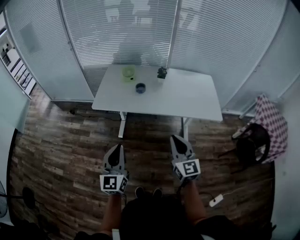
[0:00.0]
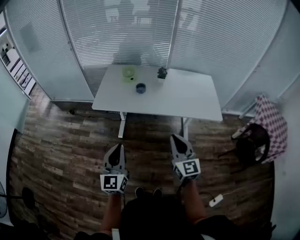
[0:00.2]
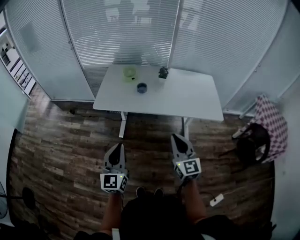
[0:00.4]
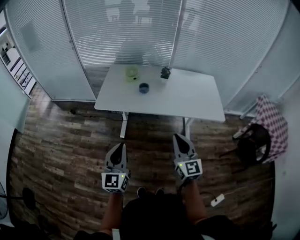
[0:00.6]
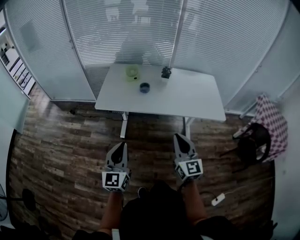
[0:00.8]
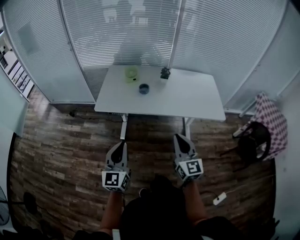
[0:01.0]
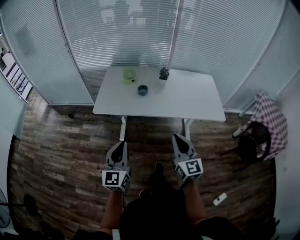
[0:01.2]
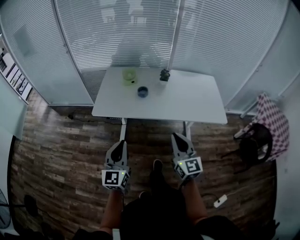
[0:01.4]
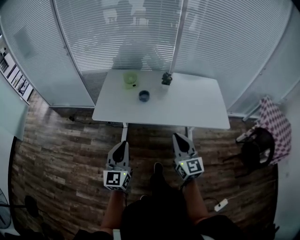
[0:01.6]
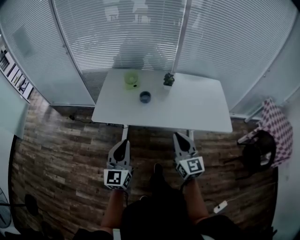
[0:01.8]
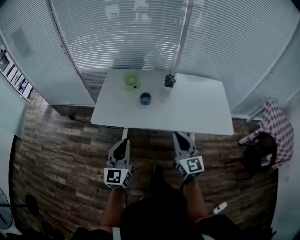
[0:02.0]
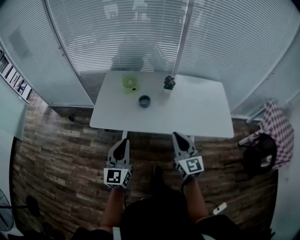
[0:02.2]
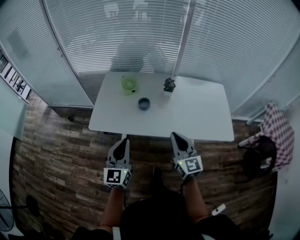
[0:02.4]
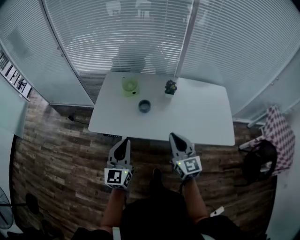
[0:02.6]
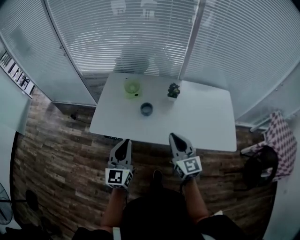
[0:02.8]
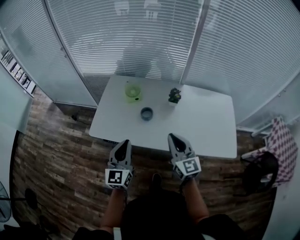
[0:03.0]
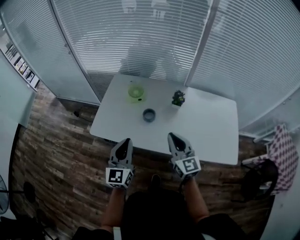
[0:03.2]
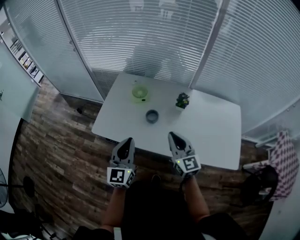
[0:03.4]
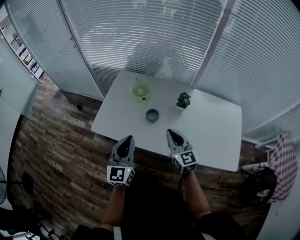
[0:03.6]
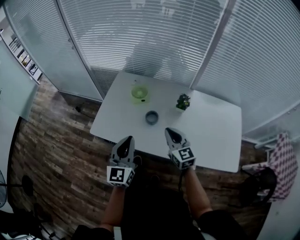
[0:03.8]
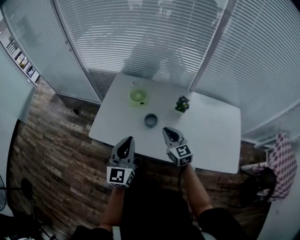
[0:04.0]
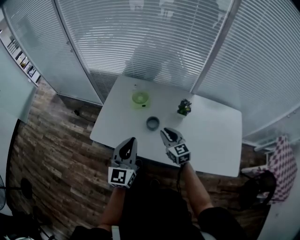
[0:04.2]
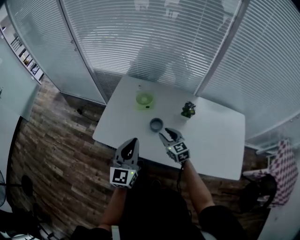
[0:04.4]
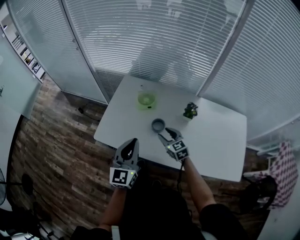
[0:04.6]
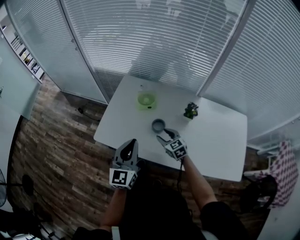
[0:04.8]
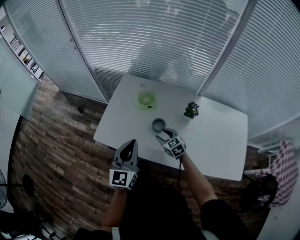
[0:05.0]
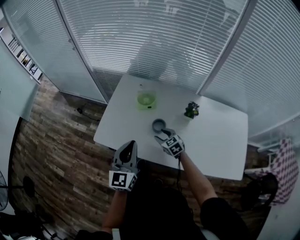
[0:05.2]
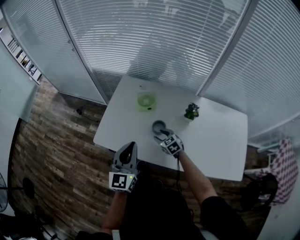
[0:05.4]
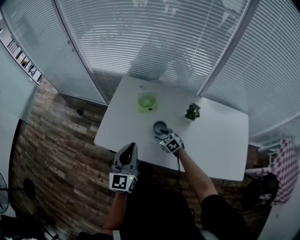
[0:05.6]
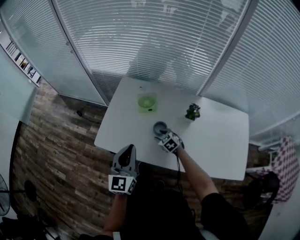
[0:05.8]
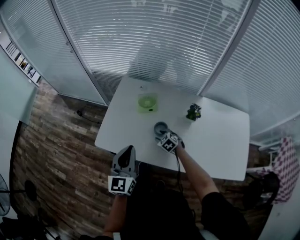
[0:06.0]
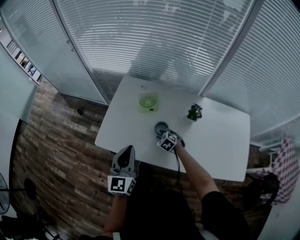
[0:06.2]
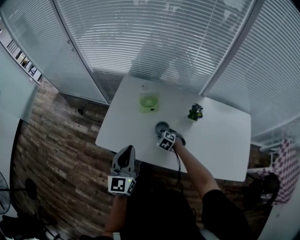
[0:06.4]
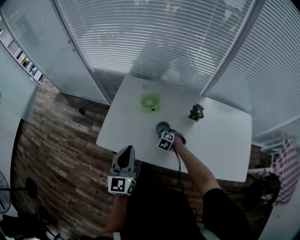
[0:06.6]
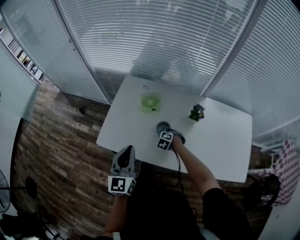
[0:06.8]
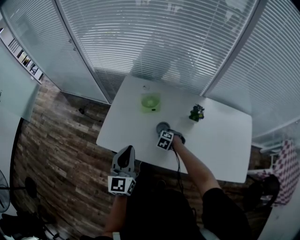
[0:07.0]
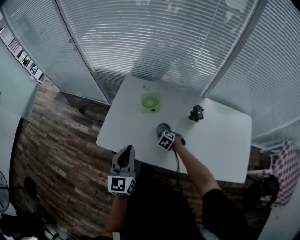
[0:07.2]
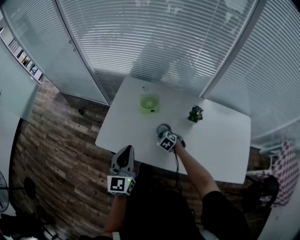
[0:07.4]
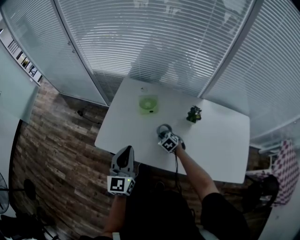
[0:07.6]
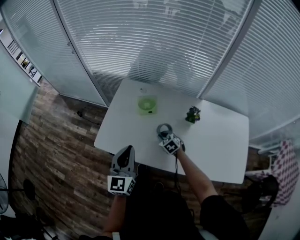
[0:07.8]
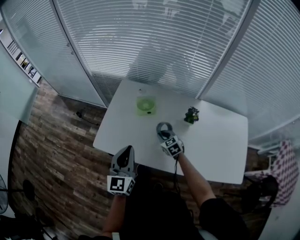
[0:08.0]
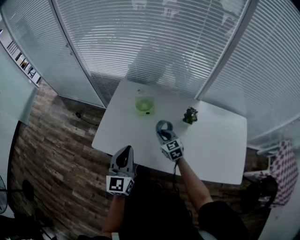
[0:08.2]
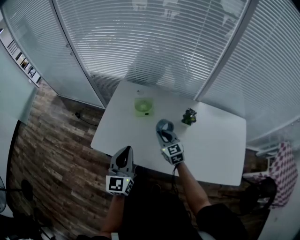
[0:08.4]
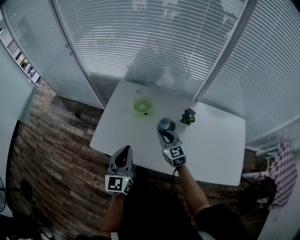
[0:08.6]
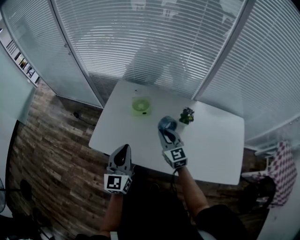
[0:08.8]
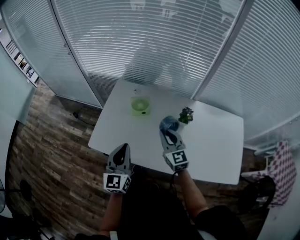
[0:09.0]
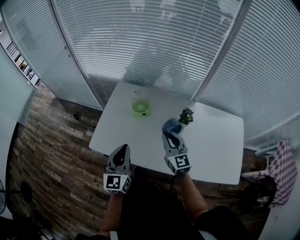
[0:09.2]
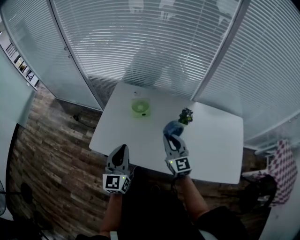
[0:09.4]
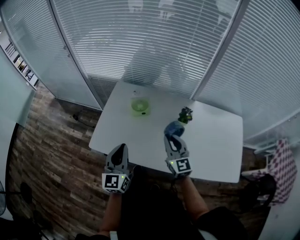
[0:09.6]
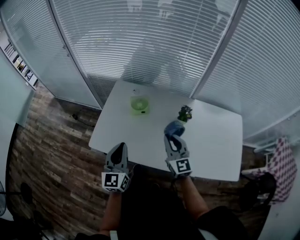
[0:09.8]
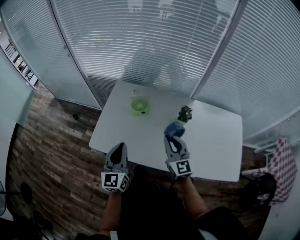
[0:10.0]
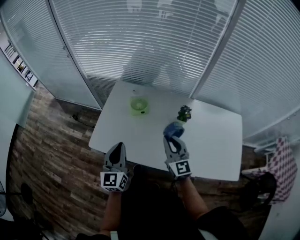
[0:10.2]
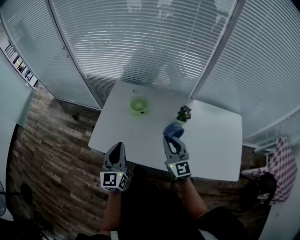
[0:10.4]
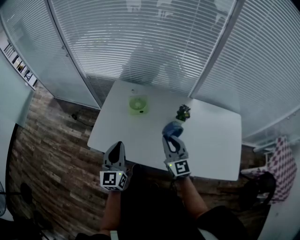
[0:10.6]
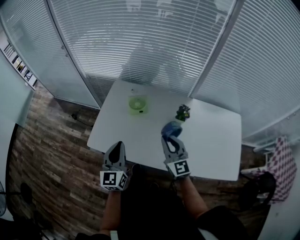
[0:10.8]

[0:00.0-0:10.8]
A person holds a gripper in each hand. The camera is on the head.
0:00.0 to 0:01.6: Both grippers travel together forward, approximately 10 cm.
0:01.6 to 0:03.0: Both grippers move forward, some 20 cm.
0:03.0 to 0:04.6: The right gripper goes approximately 25 cm downward and forward, turns by some 30 degrees, and opens up. The left gripper travels forward by approximately 10 cm.
0:04.6 to 0:06.2: The right gripper heads downward, covering some 15 cm, and tilts its fingers approximately 30 degrees downward, while the left gripper ends up about 5 cm from where it was.
0:06.2 to 0:07.8: The right gripper closes up.
0:07.8 to 0:09.2: The right gripper heads upward, covering some 25 cm, and angles its fingers upward, by approximately 50 degrees.
0:09.2 to 0:10.8: The grippers move only a little.

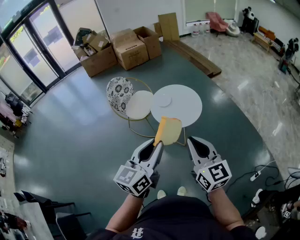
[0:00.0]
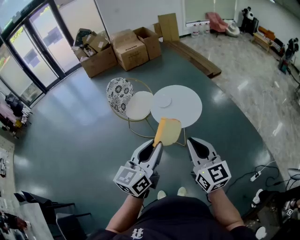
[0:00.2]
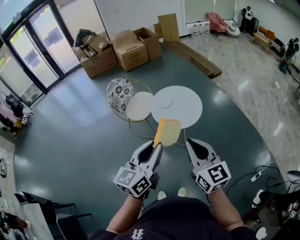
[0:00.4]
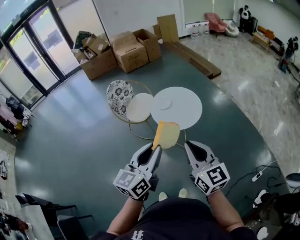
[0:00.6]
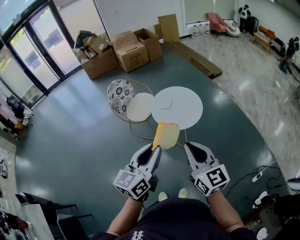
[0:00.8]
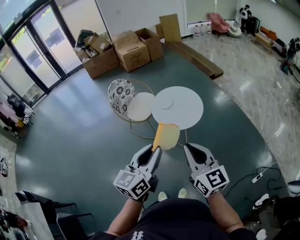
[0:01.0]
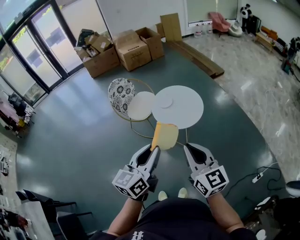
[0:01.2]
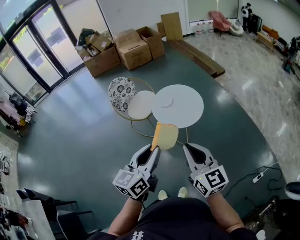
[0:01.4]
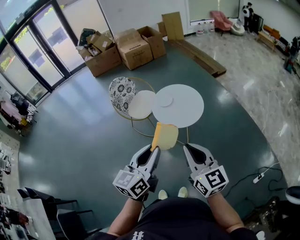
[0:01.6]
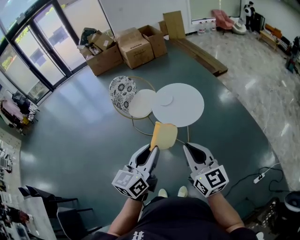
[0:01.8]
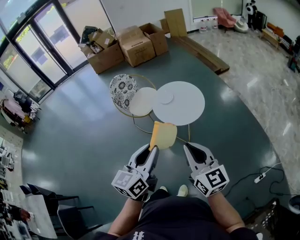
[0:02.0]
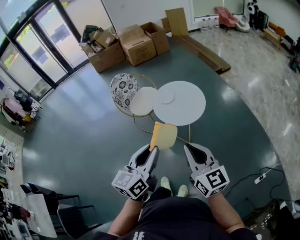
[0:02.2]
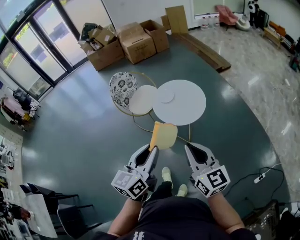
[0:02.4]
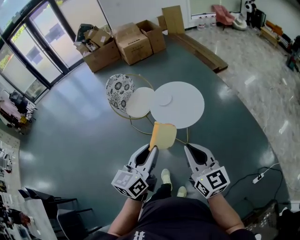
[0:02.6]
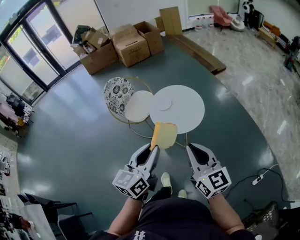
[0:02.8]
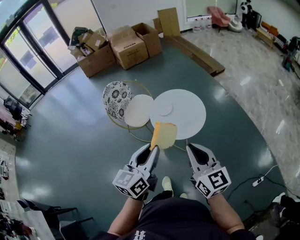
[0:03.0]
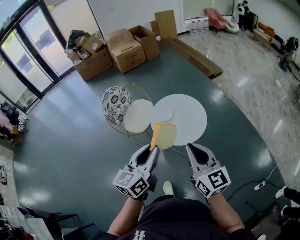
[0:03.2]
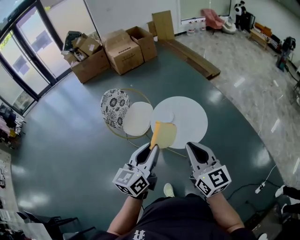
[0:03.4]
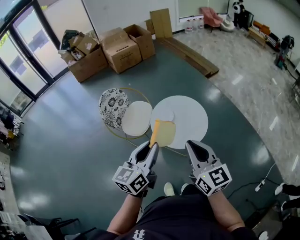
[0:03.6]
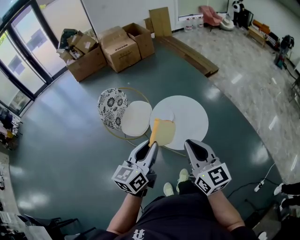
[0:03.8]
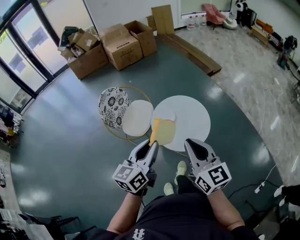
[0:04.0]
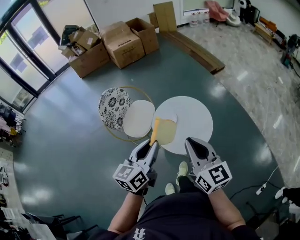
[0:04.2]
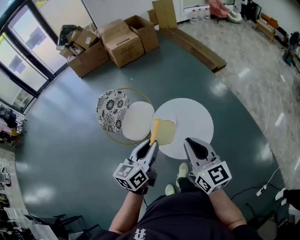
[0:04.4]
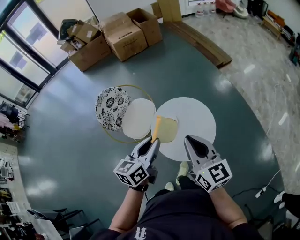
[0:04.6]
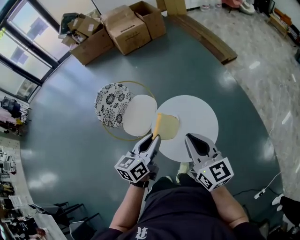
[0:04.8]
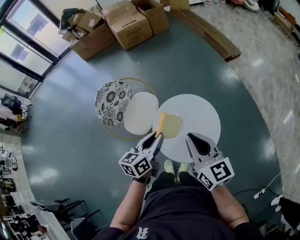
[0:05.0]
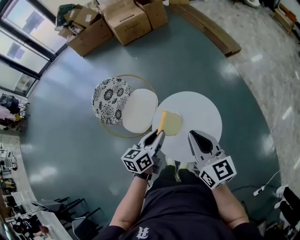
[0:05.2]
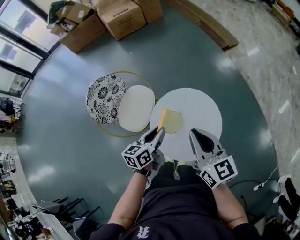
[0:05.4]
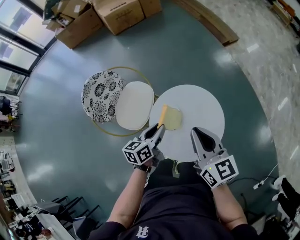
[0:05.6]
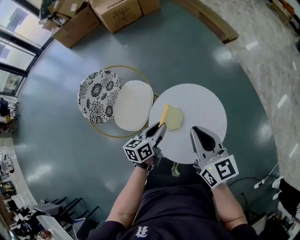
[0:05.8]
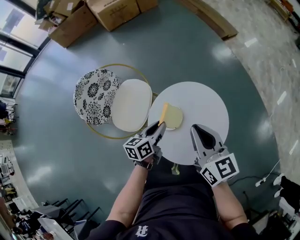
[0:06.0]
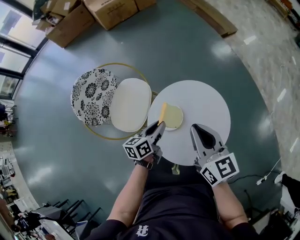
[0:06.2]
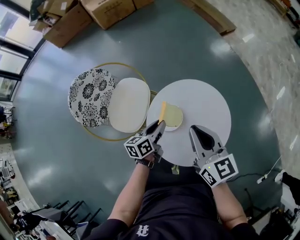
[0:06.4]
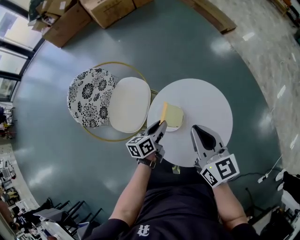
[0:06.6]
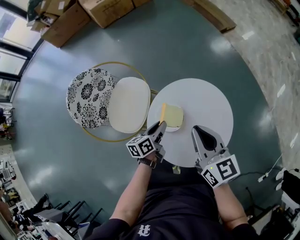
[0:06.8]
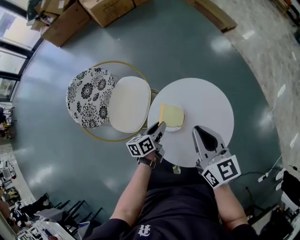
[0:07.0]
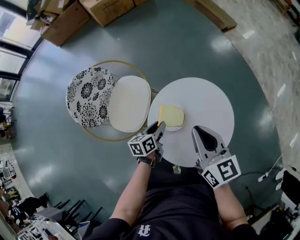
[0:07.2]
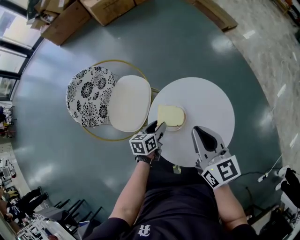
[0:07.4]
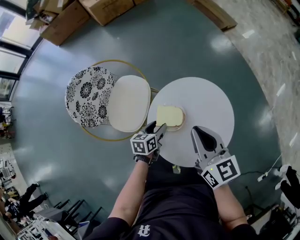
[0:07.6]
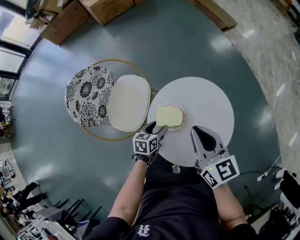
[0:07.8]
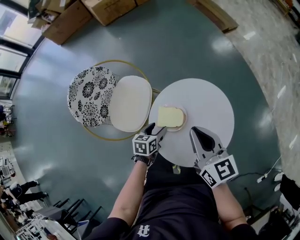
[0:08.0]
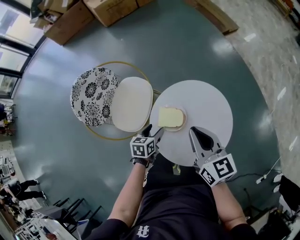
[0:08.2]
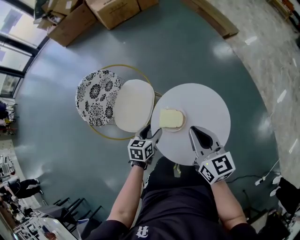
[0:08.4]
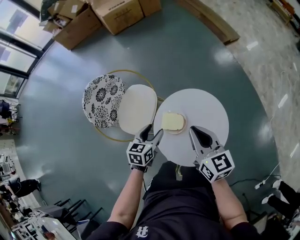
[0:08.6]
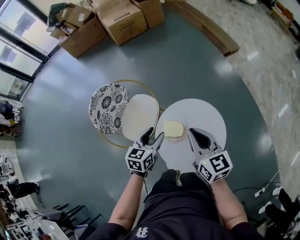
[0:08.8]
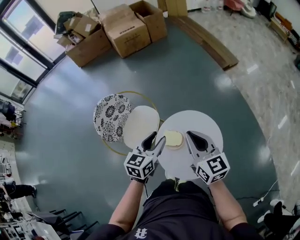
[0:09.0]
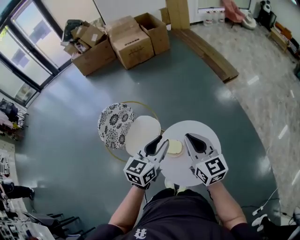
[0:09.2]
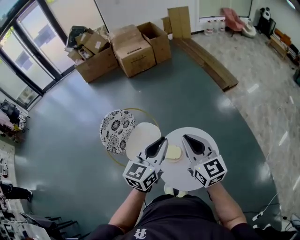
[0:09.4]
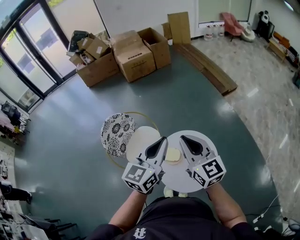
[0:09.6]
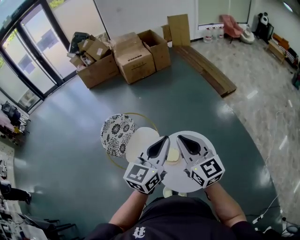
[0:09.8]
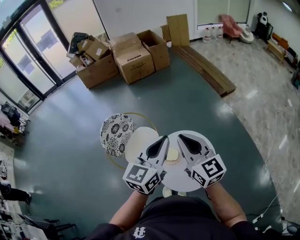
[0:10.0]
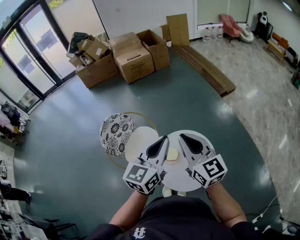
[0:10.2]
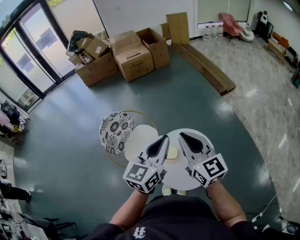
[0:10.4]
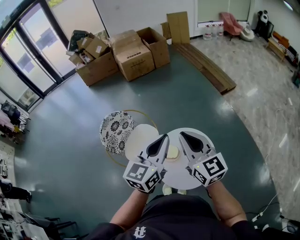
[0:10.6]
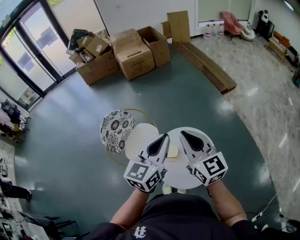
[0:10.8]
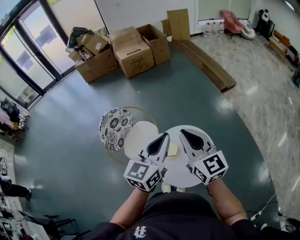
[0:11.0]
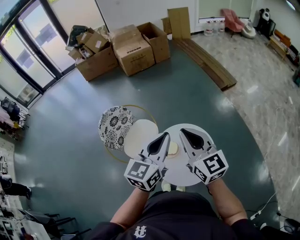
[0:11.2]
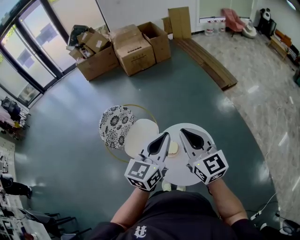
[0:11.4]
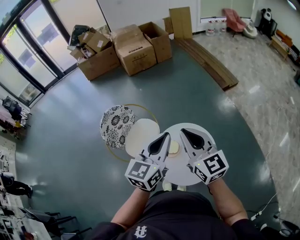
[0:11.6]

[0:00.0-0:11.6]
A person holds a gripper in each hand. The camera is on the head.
0:00.0 to 0:01.4: The grippers stay close to where they were, moving slightly.
0:01.4 to 0:02.8: Both grippers travel together forward, about 10 cm.
0:02.8 to 0:04.4: Both grippers travel together forward, approximately 25 cm.
0:04.4 to 0:05.8: The right gripper is displaced forward and downward by some 25 cm. Meanwhile the left gripper moves downward and forward, approximately 35 cm, and rotates some 20 degrees.
0:05.8 to 0:07.2: The right gripper heads downward, covering approximately 10 cm. Meanwhile the left gripper is displaced downward by roughly 15 cm.
0:07.2 to 0:08.8: The left gripper heads upward, covering approximately 20 cm, changes its angle by about 30 degrees, and opens. Meanwhile the right gripper shifts about 10 cm upward.
0:08.8 to 0:10.2: The right gripper is displaced upward by about 20 cm, while the left gripper shifts approximately 30 cm upward, turns by approximately 30 degrees, and closes its fingers.
0:10.2 to 0:11.6: There are only small adjustments of the grippers.

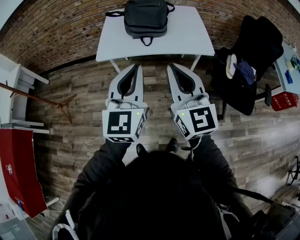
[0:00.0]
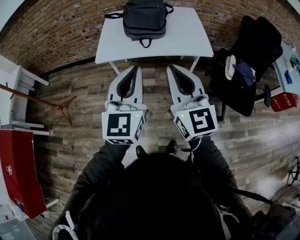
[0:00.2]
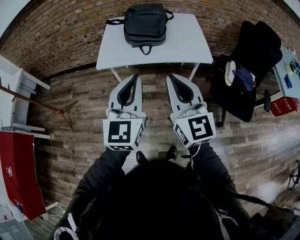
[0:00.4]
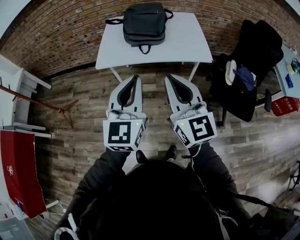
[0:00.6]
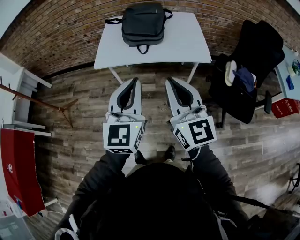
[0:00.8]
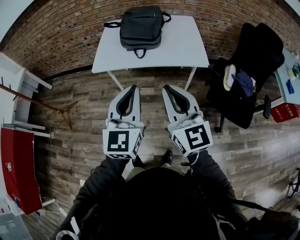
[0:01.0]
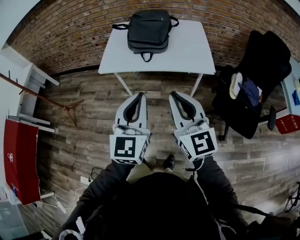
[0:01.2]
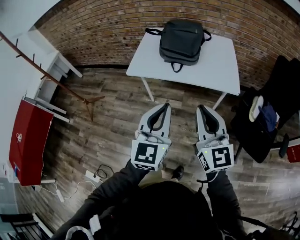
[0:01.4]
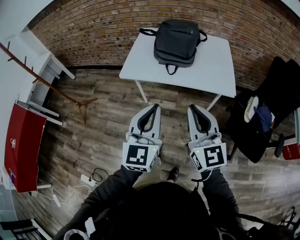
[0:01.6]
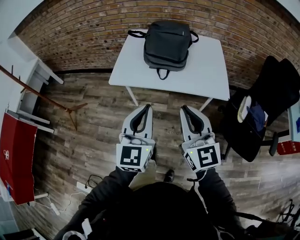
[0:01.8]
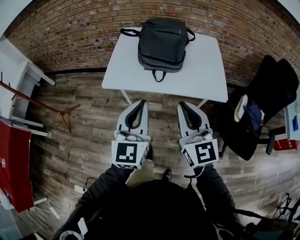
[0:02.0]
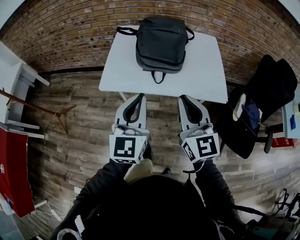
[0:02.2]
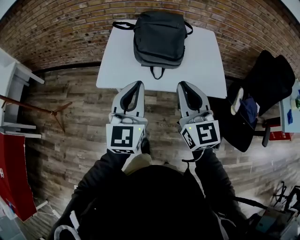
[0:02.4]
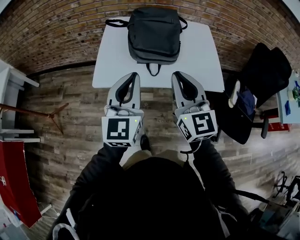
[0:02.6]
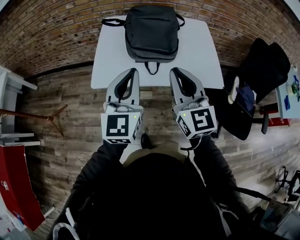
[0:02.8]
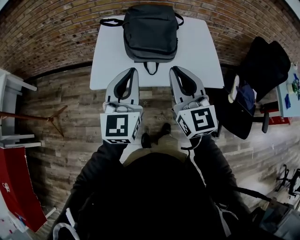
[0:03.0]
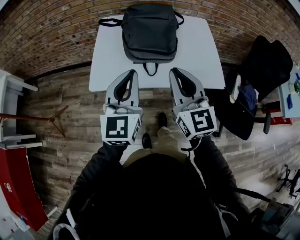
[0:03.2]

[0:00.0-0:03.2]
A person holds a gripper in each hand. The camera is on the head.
0:00.0 to 0:01.6: The left gripper goes to the right and returns, roughly 10 cm each way; the right gripper changes place by approximately 5 cm.
0:01.6 to 0:03.2: Both grippers travel together forward, some 25 cm.
